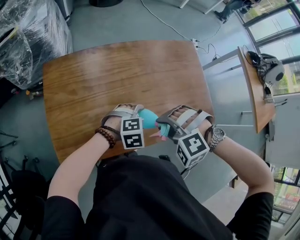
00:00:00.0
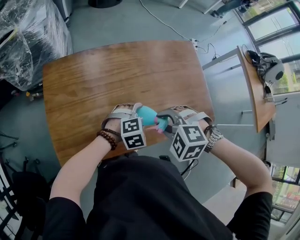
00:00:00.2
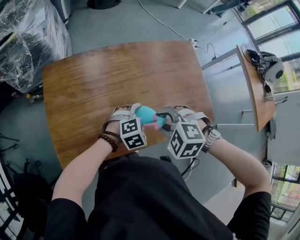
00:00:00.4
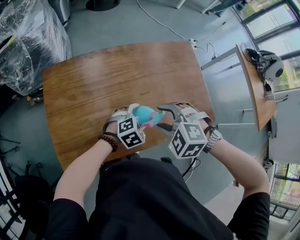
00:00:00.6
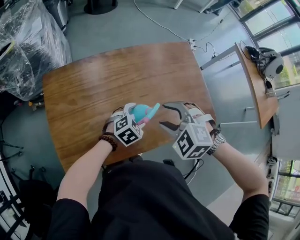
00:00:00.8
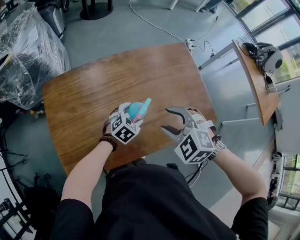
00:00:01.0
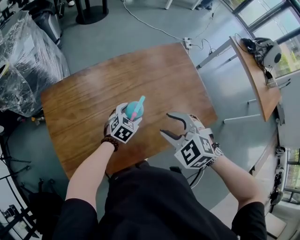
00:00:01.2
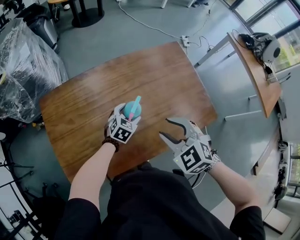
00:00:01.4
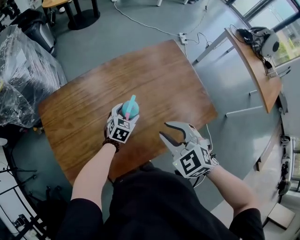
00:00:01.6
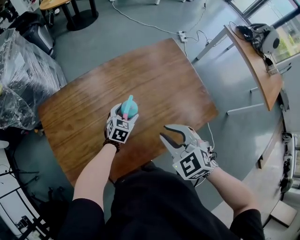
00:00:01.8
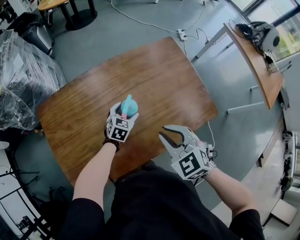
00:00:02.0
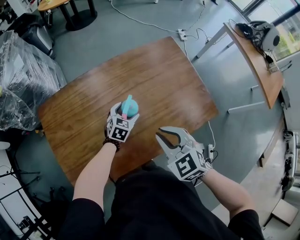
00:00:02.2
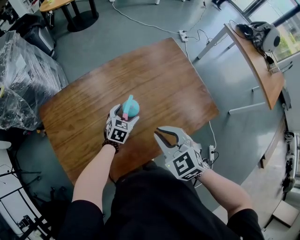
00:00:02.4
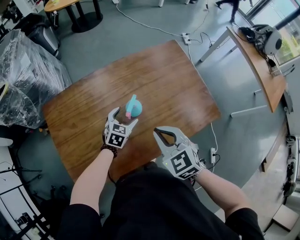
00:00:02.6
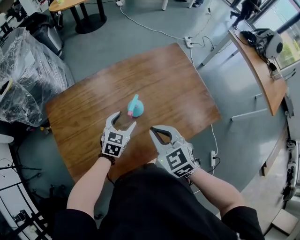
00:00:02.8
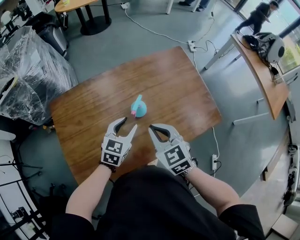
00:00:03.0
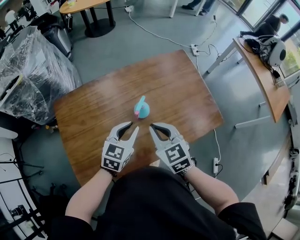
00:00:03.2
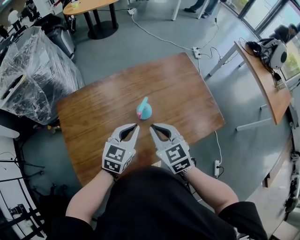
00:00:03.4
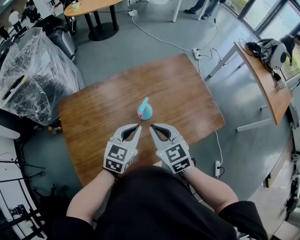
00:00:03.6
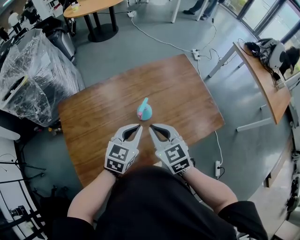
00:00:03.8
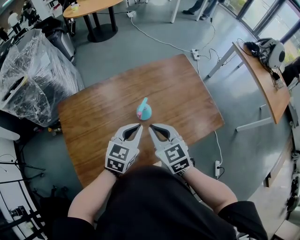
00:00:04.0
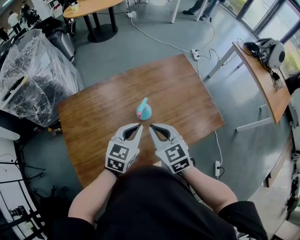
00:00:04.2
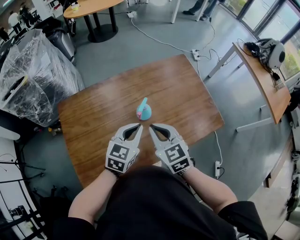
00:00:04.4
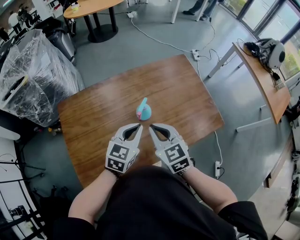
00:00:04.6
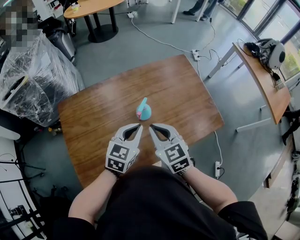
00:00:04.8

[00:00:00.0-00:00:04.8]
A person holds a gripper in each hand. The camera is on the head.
00:00:00.0 to 00:00:01.6: The right gripper shifts roughly 5 cm forward, rotates around the line of its fingers by about 60 degrees, clockwise from behind, and opens and closes again. The left gripper heads forward and downward, covering approximately 15 cm, and turns by some 40 degrees.
00:00:01.6 to 00:00:03.2: The left gripper is displaced upward and backward by about 20 cm, and closes its fingers. Meanwhile the right gripper moves to the left, about 5 cm, turns by approximately 30 degrees, and closes.
00:00:03.2 to 00:00:04.8: The grippers move only a little.

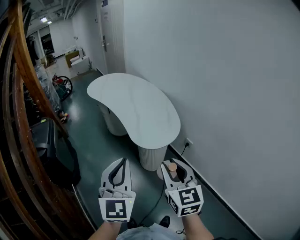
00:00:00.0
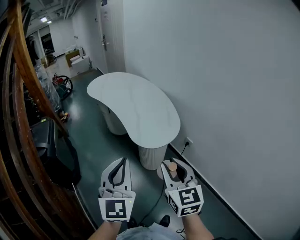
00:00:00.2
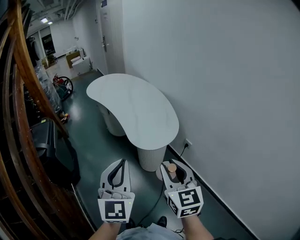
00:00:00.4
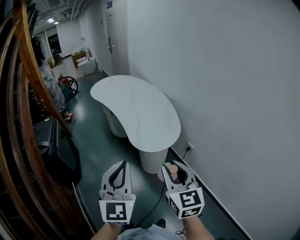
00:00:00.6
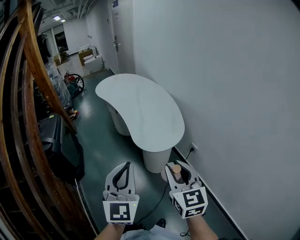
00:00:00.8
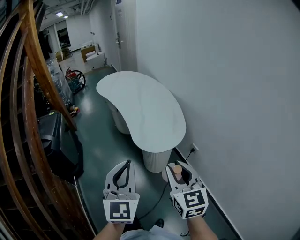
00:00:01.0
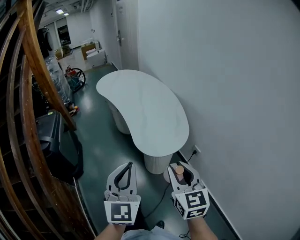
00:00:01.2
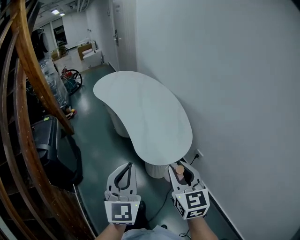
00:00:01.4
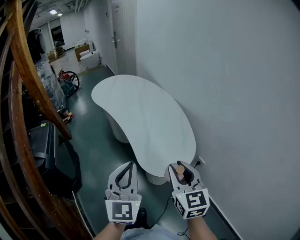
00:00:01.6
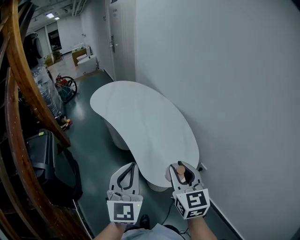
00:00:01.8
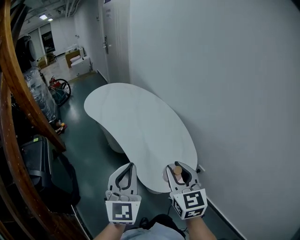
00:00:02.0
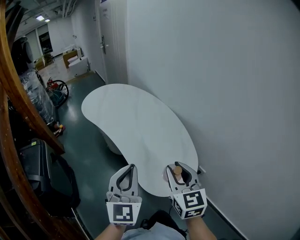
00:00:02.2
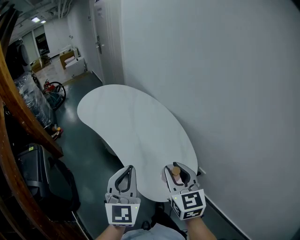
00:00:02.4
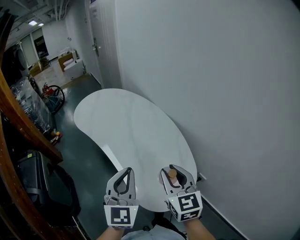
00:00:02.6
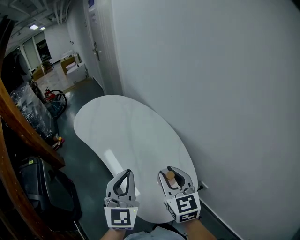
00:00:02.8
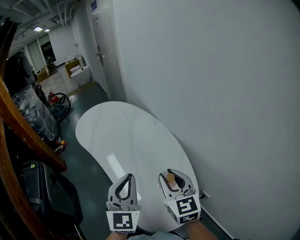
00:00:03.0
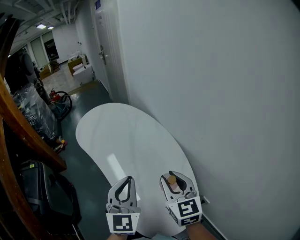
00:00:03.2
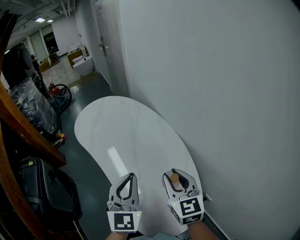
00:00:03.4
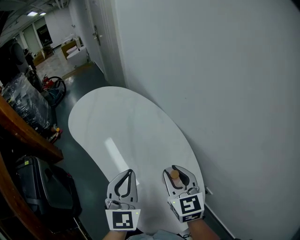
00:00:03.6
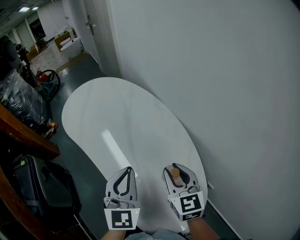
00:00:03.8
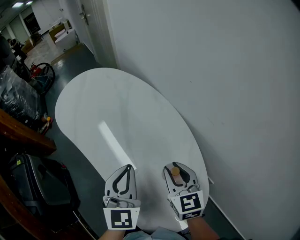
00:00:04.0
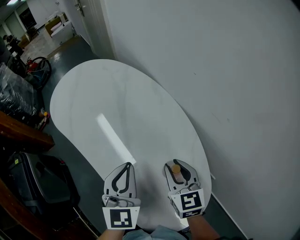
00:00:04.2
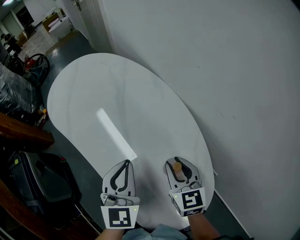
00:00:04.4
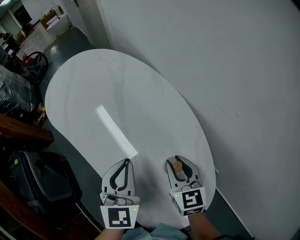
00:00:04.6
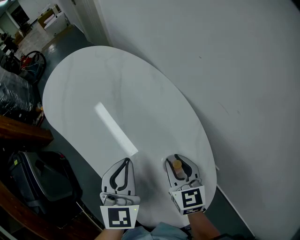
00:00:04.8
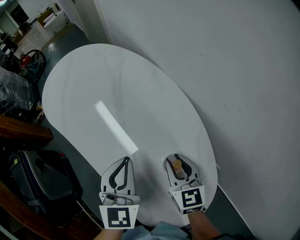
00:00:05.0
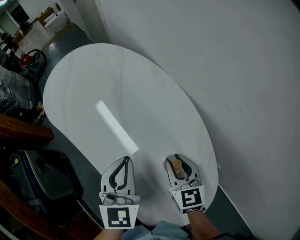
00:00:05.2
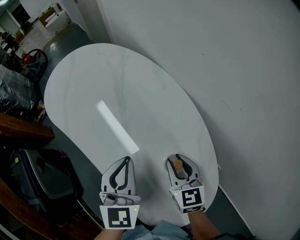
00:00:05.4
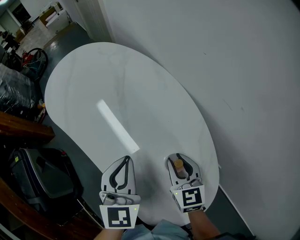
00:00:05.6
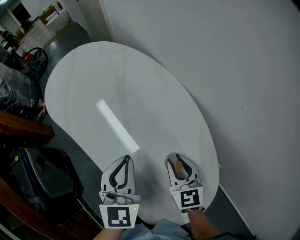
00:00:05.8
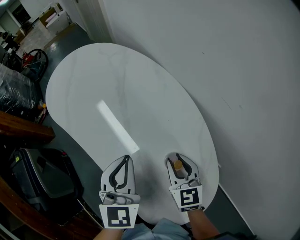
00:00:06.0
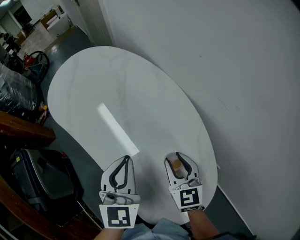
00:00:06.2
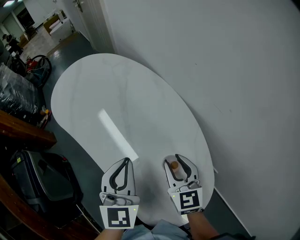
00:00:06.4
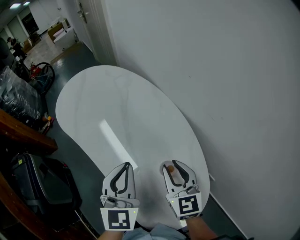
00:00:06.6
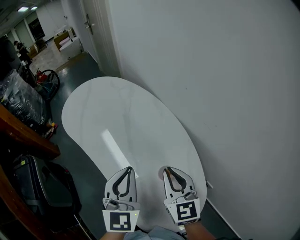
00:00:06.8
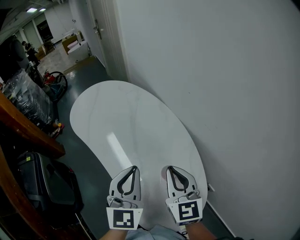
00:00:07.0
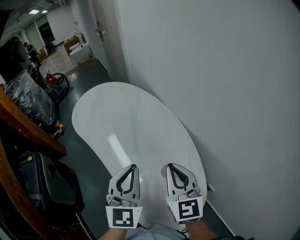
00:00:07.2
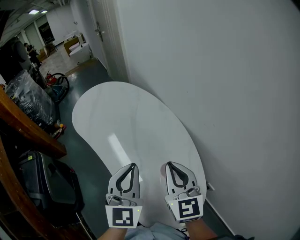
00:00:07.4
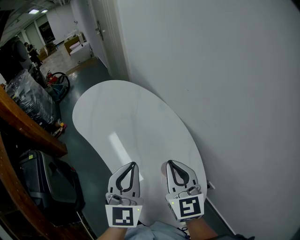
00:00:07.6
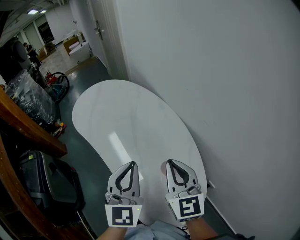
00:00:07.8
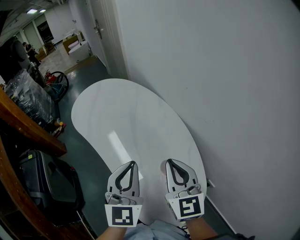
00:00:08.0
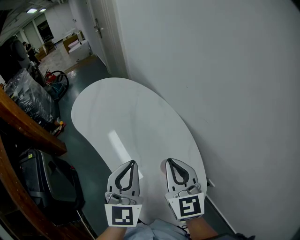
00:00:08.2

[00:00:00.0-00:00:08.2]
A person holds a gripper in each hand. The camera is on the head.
00:00:00.0 to 00:00:01.6: The grippers both shift forward by approximately 15 cm.
00:00:01.6 to 00:00:03.2: The grippers both shift forward by roughly 25 cm.
00:00:03.2 to 00:00:05.0: The left gripper goes about 15 cm downward and forward, and changes its angle by approximately 20 degrees, while the right gripper moves downward, approximately 15 cm.
00:00:05.0 to 00:00:06.6: Both grippers move upward, approximately 5 cm.
00:00:06.6 to 00:00:08.2: The right gripper is displaced upward by roughly 10 cm, and closes up, while the left gripper changes place by roughly 5 cm.

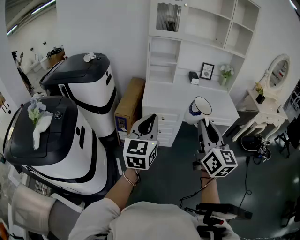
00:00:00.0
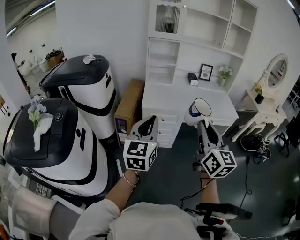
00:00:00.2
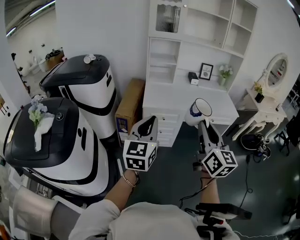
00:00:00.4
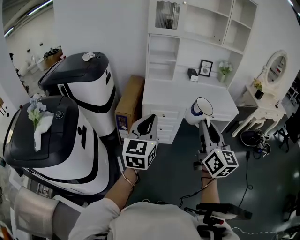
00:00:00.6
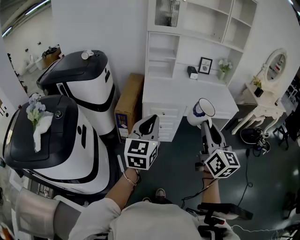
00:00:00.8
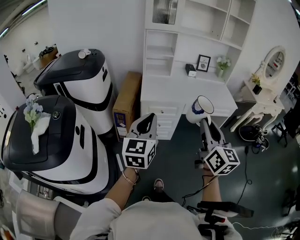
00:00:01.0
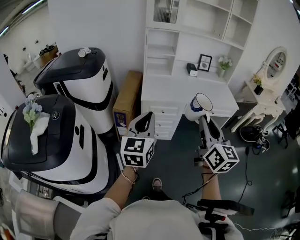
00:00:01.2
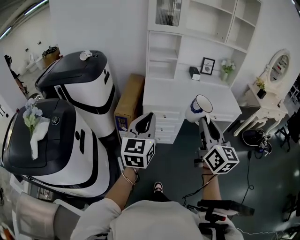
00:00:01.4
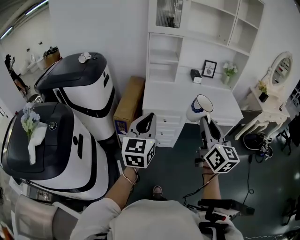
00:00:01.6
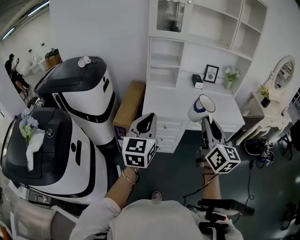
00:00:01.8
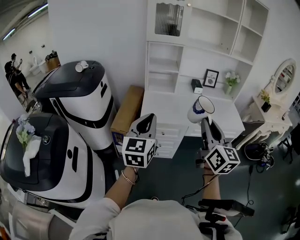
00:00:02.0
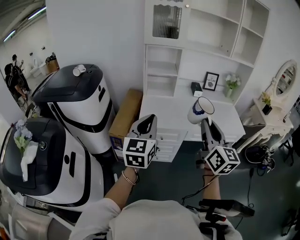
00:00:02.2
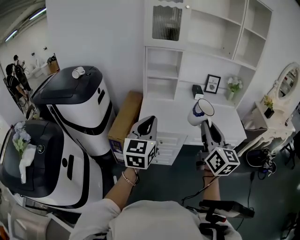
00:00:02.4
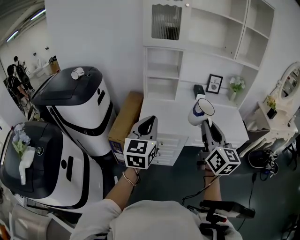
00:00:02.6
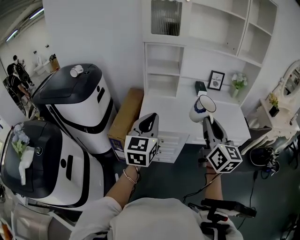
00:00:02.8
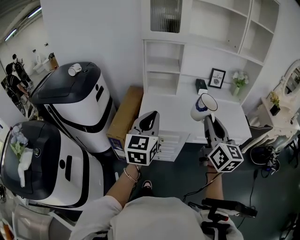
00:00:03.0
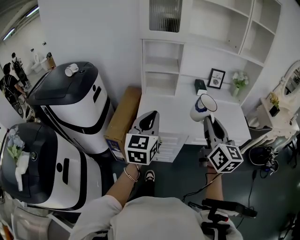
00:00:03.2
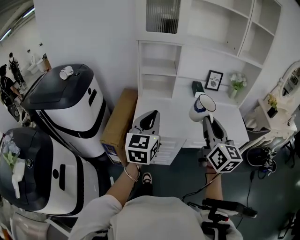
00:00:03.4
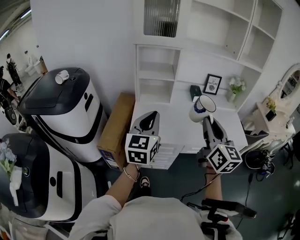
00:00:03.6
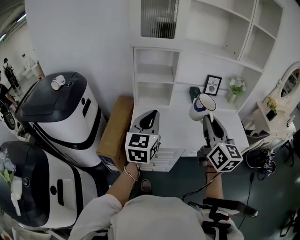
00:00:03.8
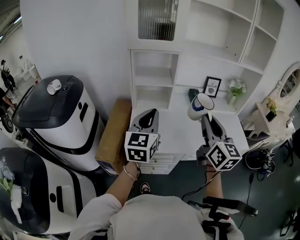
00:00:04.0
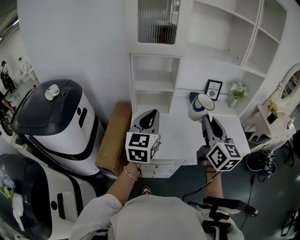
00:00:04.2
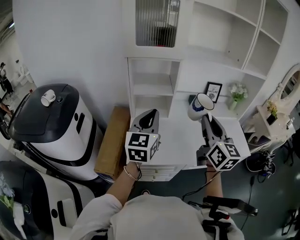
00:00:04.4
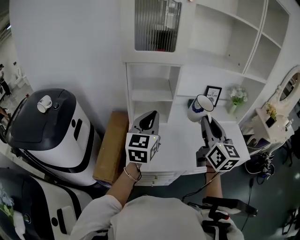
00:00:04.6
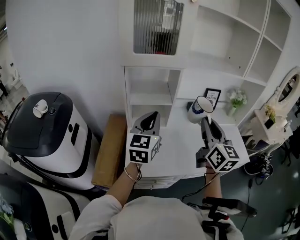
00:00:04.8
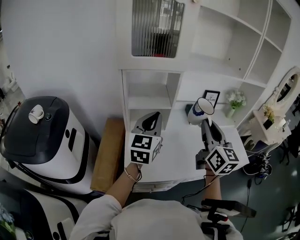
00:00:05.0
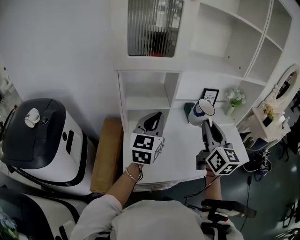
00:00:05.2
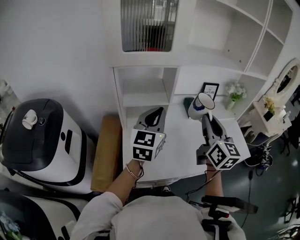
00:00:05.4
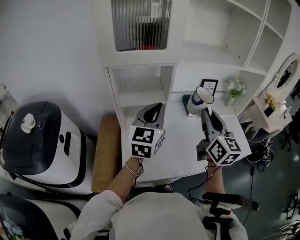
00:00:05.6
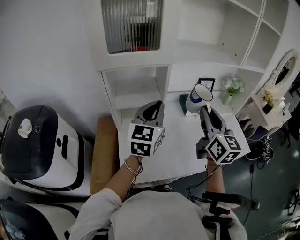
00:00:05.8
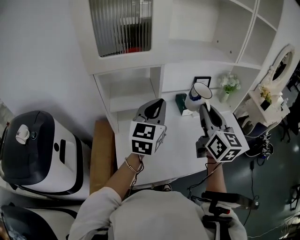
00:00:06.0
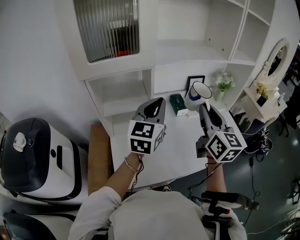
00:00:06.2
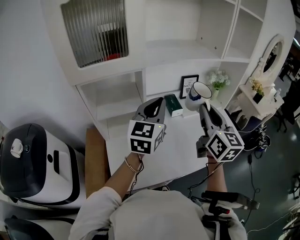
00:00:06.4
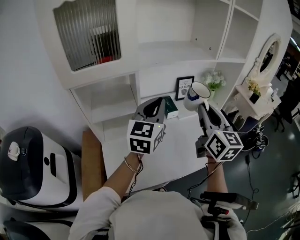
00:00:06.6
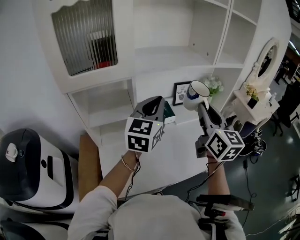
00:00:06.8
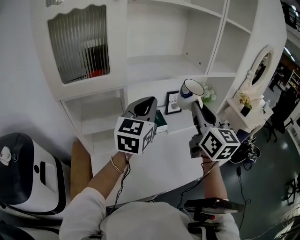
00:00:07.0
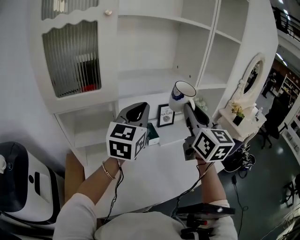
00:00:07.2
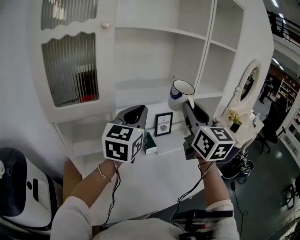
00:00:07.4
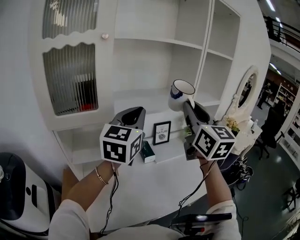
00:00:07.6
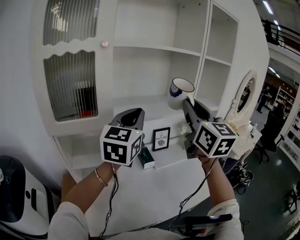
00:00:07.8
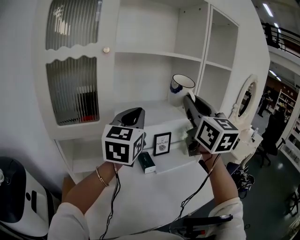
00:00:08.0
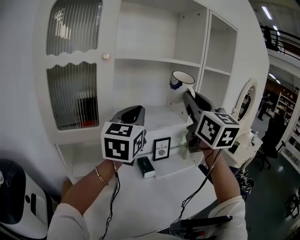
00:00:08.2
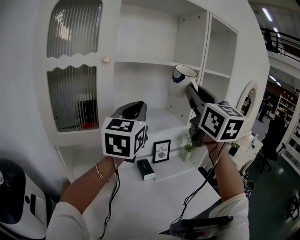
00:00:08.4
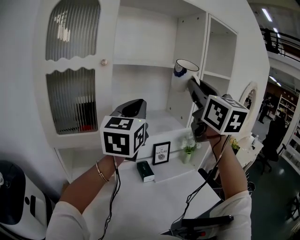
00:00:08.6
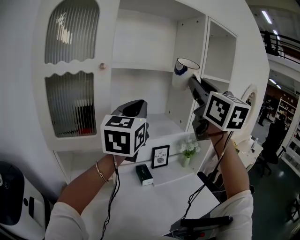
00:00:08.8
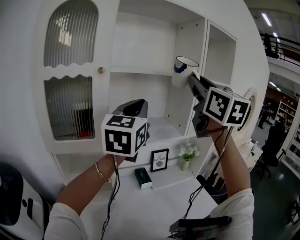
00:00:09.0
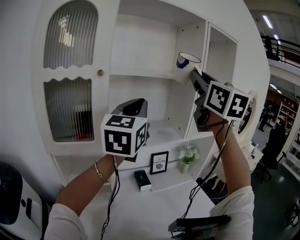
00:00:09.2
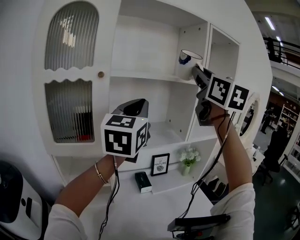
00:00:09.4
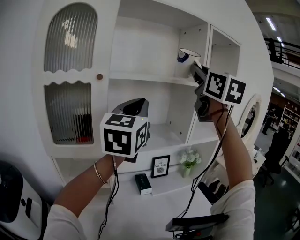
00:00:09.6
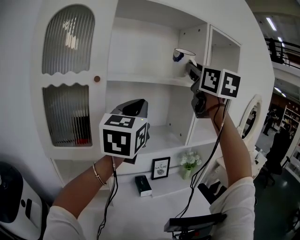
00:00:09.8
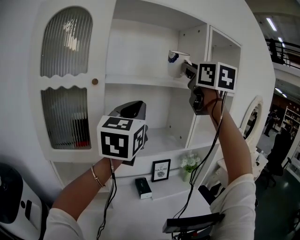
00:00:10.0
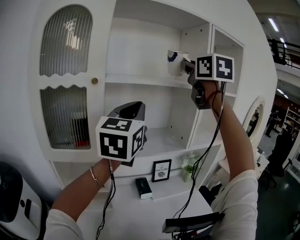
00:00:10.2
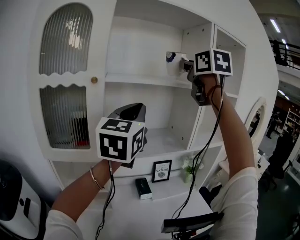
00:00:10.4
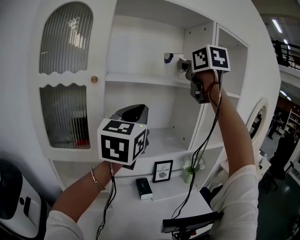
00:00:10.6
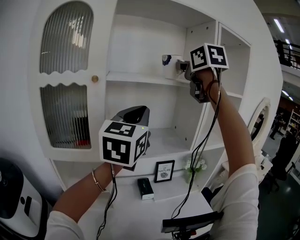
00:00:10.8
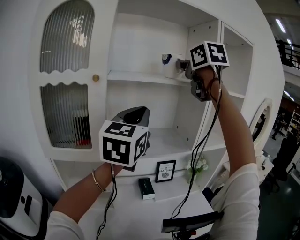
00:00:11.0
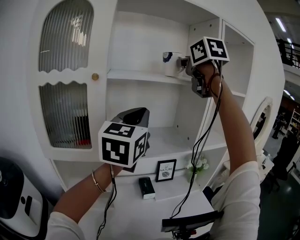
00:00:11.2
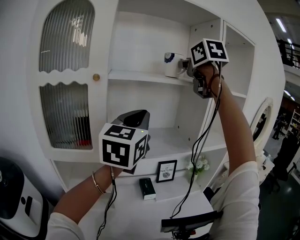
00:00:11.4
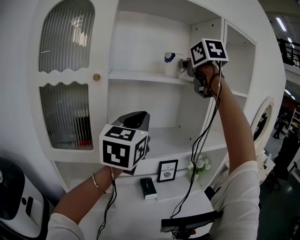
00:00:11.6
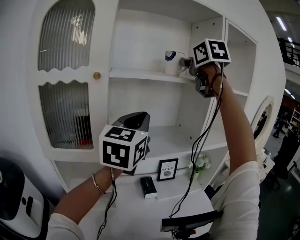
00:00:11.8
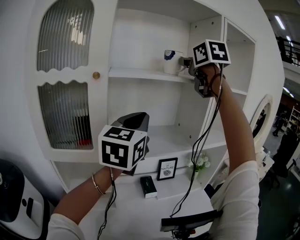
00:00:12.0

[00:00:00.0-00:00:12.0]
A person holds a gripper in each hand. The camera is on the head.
00:00:00.0 to 00:00:01.6: Both grippers travel together forward, approximately 10 cm.
00:00:01.6 to 00:00:03.0: Both grippers travel together forward, roughly 20 cm.
00:00:03.0 to 00:00:04.4: Both grippers travel together forward, about 25 cm.
00:00:04.4 to 00:00:06.0: The right gripper is displaced forward by some 15 cm. The left gripper moves forward and to the right, some 20 cm.
00:00:06.0 to 00:00:07.6: The left gripper shifts roughly 20 cm upward, to the right and forward, while the right gripper is displaced upward and to the right by about 20 cm.
00:00:07.6 to 00:00:09.0: Both grippers travel together upward, roughly 15 cm.
00:00:09.0 to 00:00:10.4: The right gripper heads forward and upward, covering approximately 15 cm.
00:00:10.4 to 00:00:12.0: The left gripper changes place by some 5 cm. Meanwhile the right gripper heads forward, covering approximately 5 cm, and opens its fingers.
